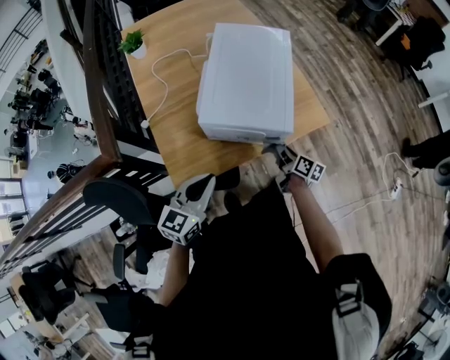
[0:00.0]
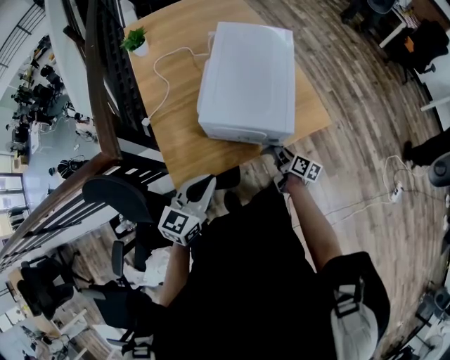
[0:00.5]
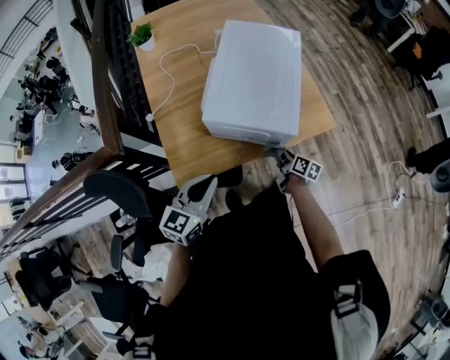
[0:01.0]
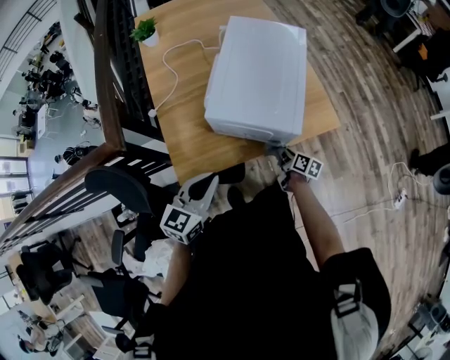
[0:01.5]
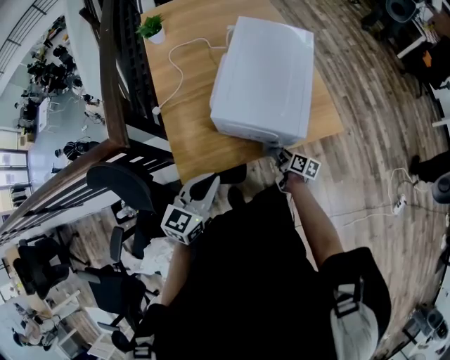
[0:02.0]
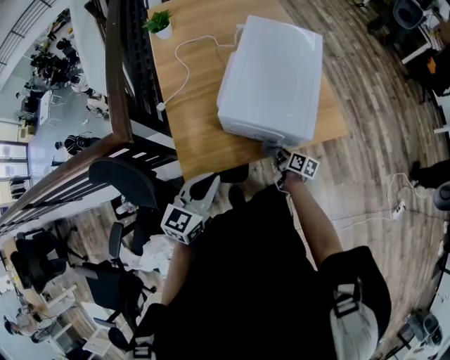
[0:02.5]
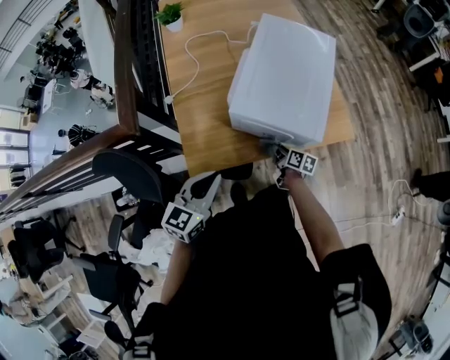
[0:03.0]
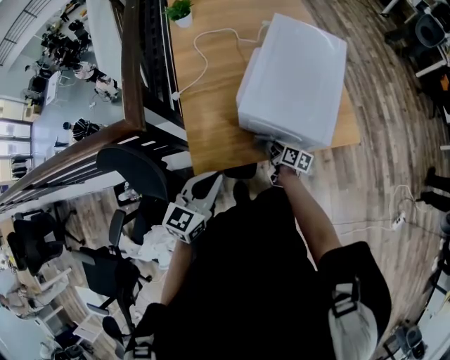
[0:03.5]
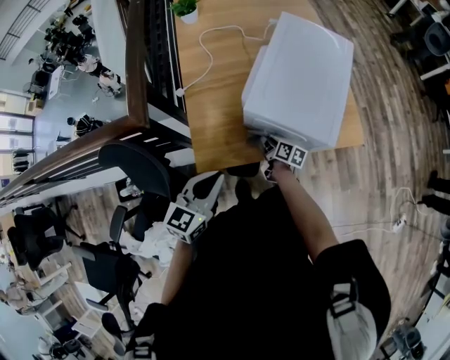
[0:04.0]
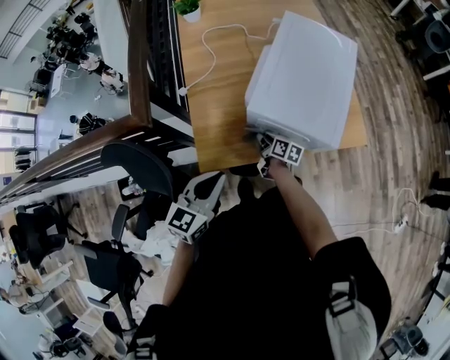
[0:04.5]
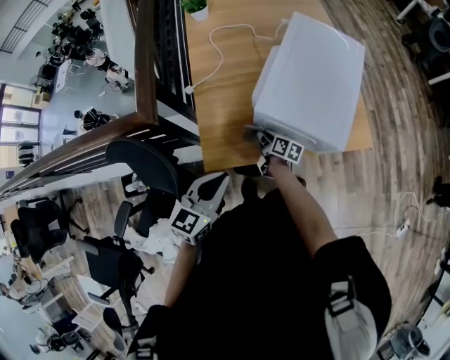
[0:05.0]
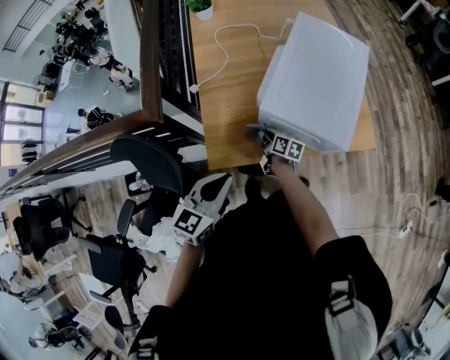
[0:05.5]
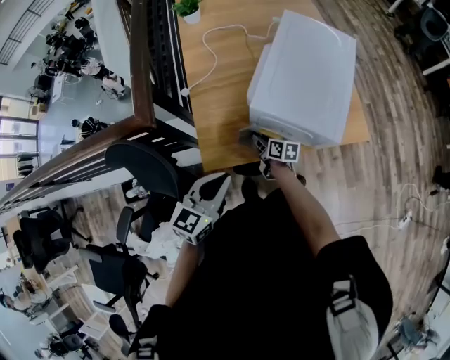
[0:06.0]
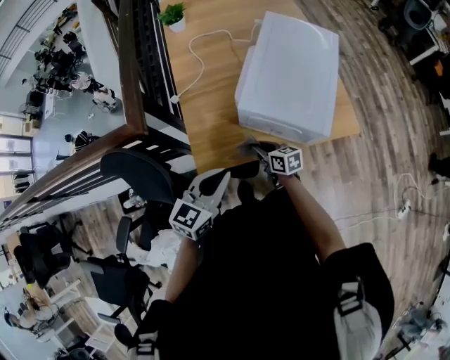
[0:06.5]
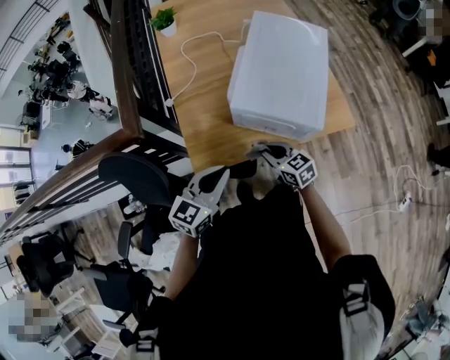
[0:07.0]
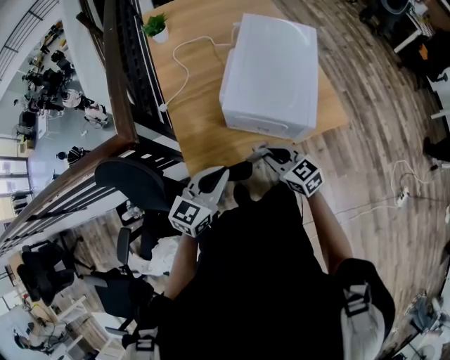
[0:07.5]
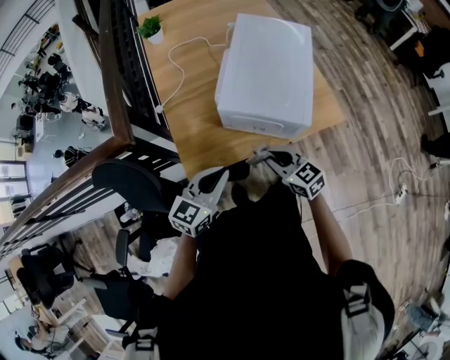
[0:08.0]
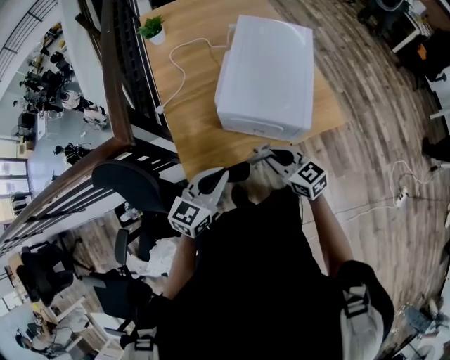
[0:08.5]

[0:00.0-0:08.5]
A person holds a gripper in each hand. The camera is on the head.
0:00.0 to 0:02.0: The right gripper is displaced downward by some 10 cm.
0:02.0 to 0:04.0: The right gripper is displaced to the left by approximately 15 cm; the left gripper shifts roughly 5 cm to the left.
0:04.0 to 0:06.5: The right gripper shifts by approximately 10 cm, and rotates roughly 30 degrees.
0:06.5 to 0:08.5: The right gripper heads upward and to the right, covering about 20 cm, and turns by some 30 degrees.

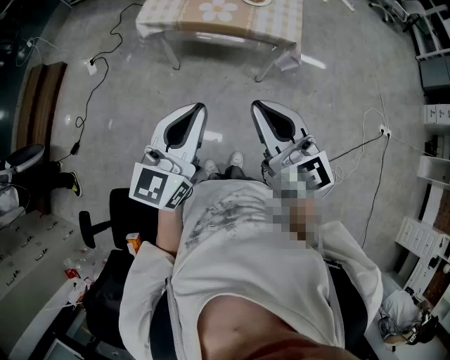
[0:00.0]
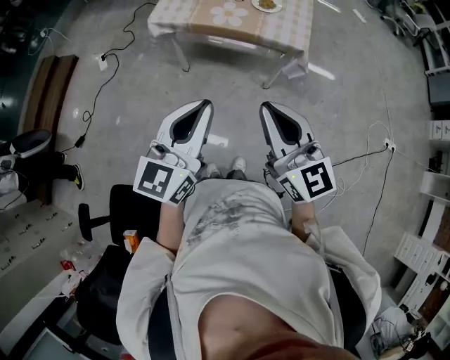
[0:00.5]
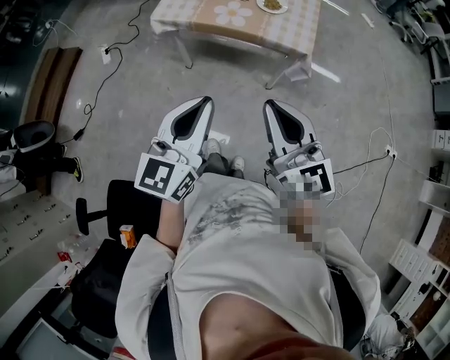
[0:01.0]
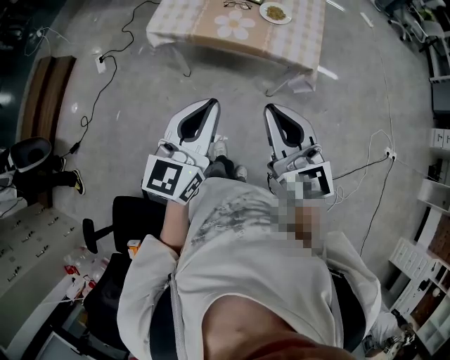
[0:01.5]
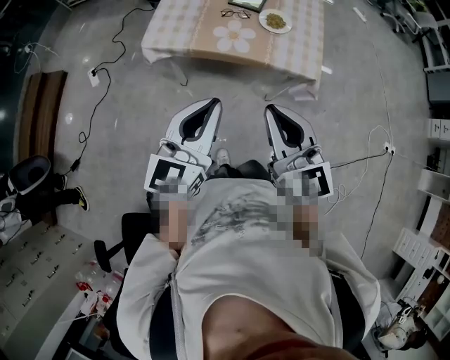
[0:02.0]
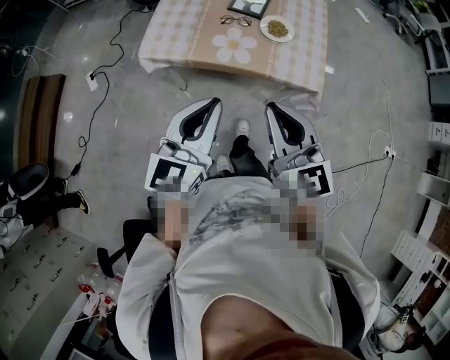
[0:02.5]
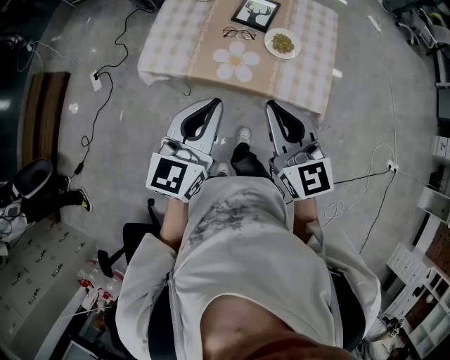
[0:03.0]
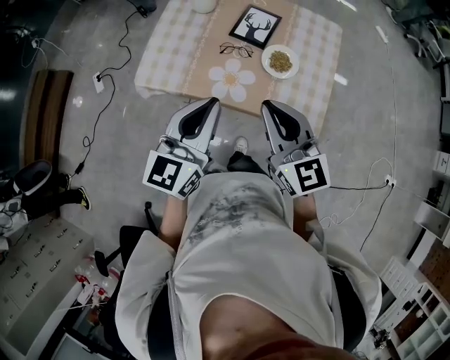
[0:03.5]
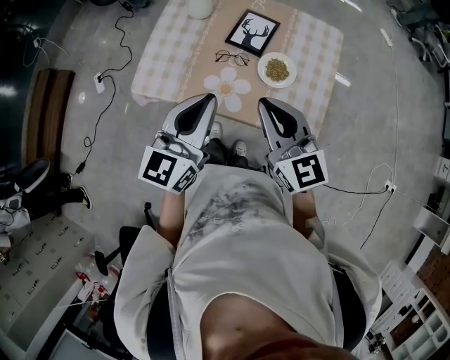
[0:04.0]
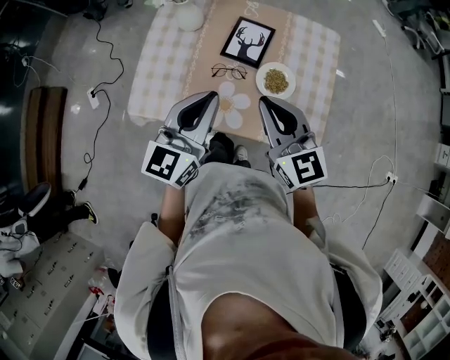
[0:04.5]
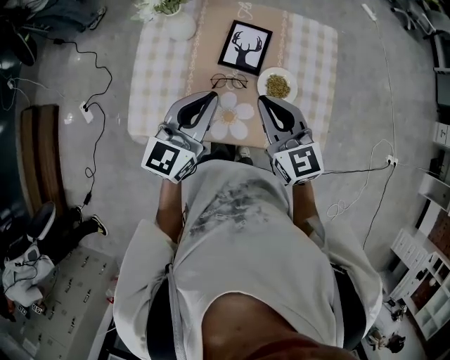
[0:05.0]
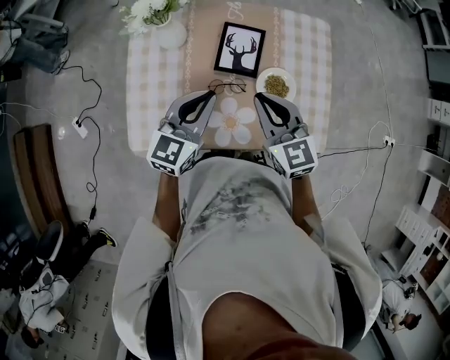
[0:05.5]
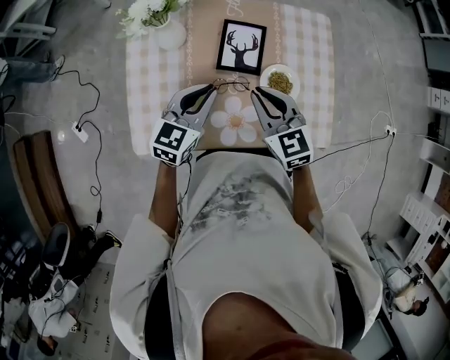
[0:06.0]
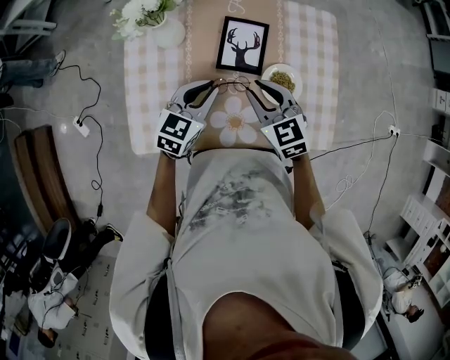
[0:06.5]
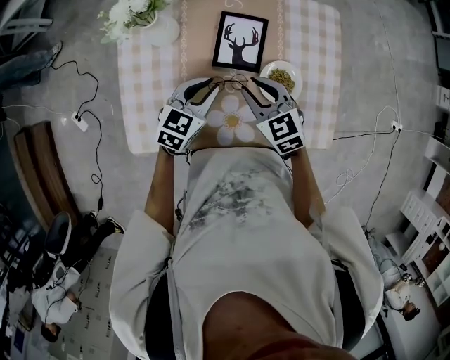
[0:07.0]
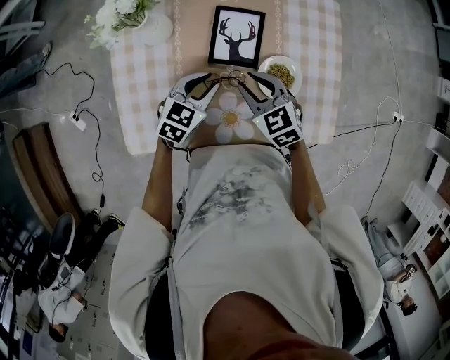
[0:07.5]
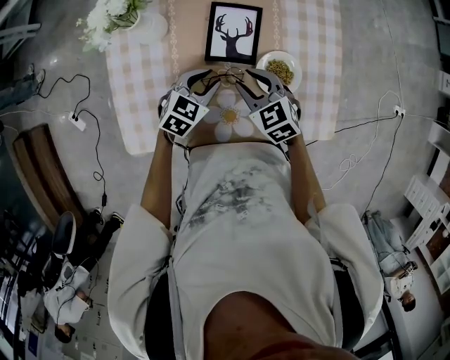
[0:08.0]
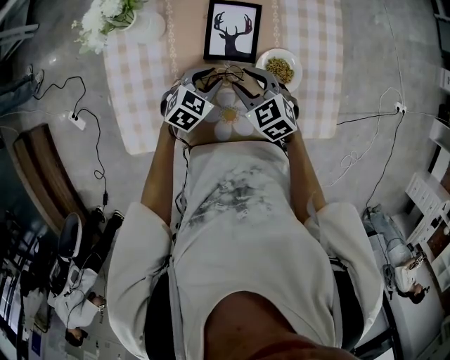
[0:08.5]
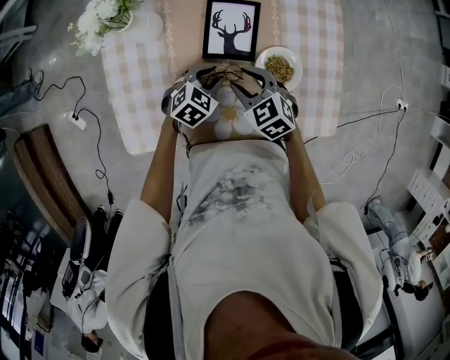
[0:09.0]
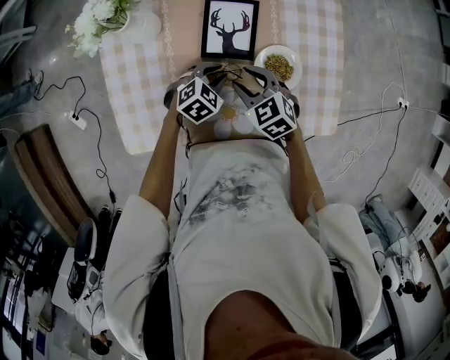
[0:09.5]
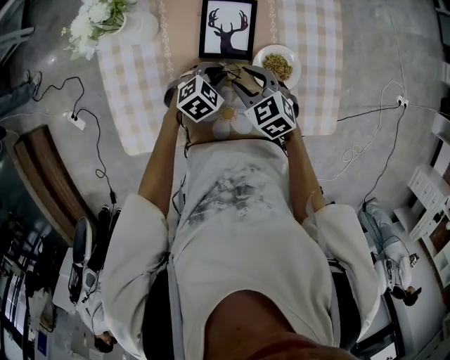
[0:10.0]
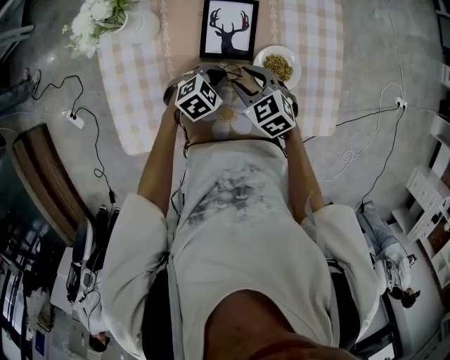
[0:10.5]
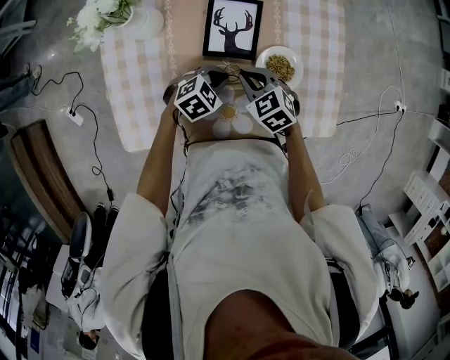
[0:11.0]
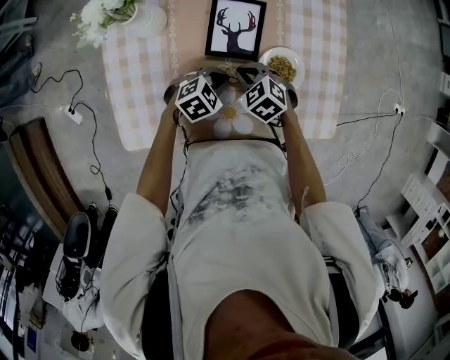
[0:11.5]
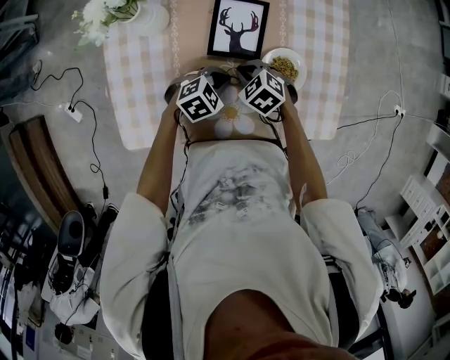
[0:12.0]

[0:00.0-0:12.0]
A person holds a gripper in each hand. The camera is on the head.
0:00.0 to 0:02.0: Both grippers move forward, roughly 20 cm.
0:02.0 to 0:04.0: Both grippers travel together forward, some 30 cm.
0:04.0 to 0:06.0: The left gripper heads forward and downward, covering about 25 cm, and turns by about 30 degrees. Meanwhile the right gripper moves forward, downward and to the left, about 25 cm, and swivels about 30 degrees.
0:06.0 to 0:08.0: Both grippers travel together downward, some 15 cm. The left gripper swivels about 30 degrees, and opens. Meanwhile the right gripper opens.
0:08.0 to 0:10.0: The left gripper goes approximately 5 cm downward, and turns by roughly 20 degrees.
0:10.0 to 0:12.0: The right gripper moves downward, approximately 5 cm, and closes its fingers.

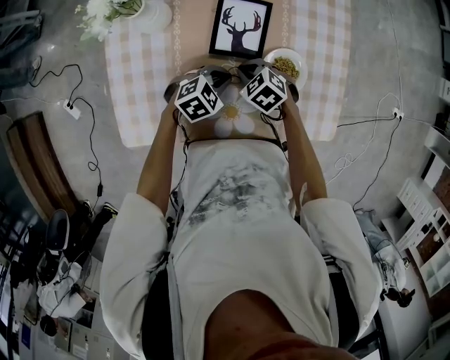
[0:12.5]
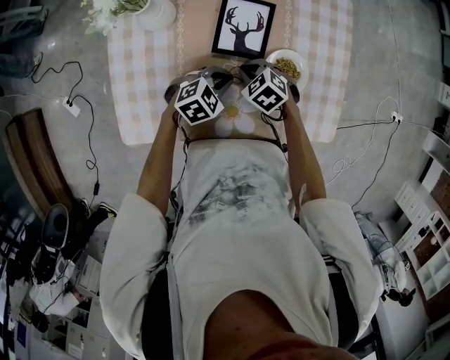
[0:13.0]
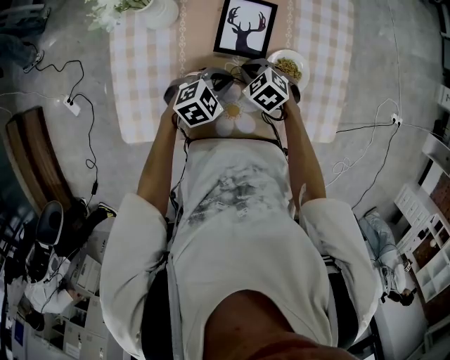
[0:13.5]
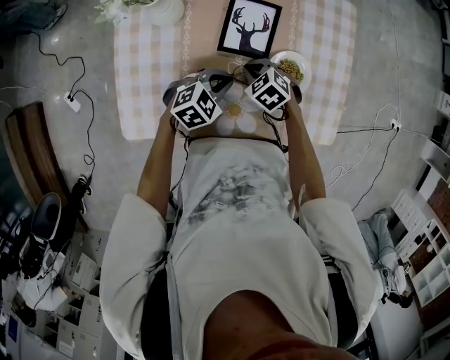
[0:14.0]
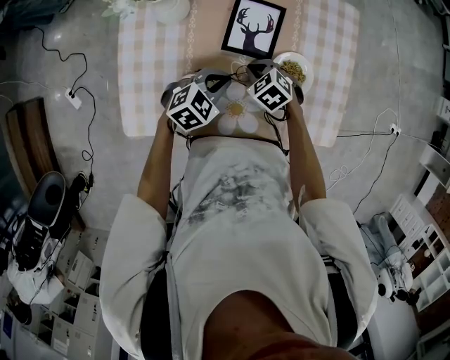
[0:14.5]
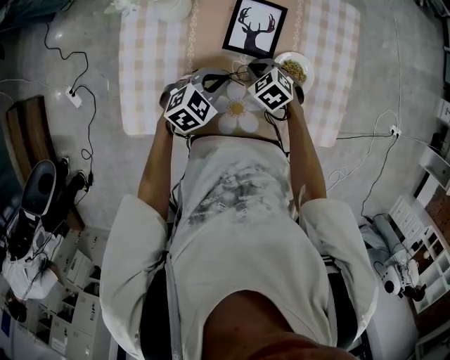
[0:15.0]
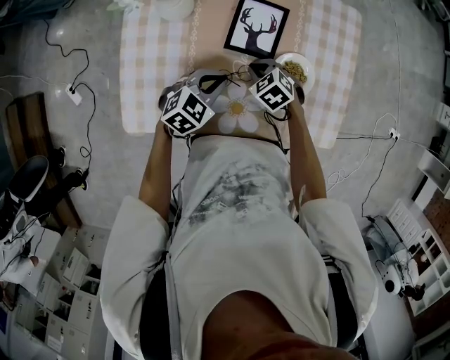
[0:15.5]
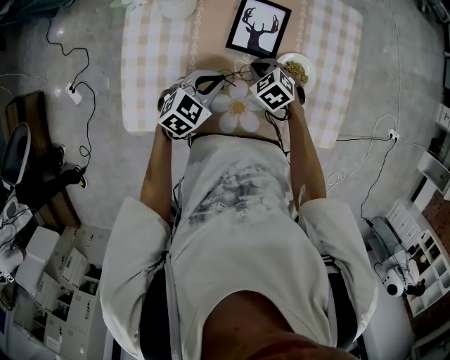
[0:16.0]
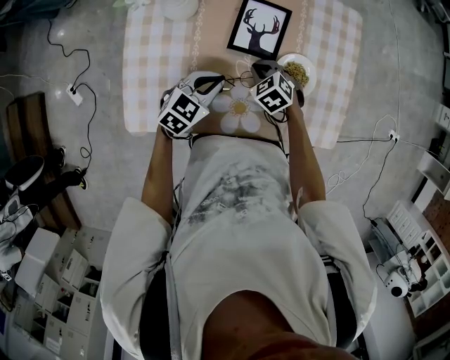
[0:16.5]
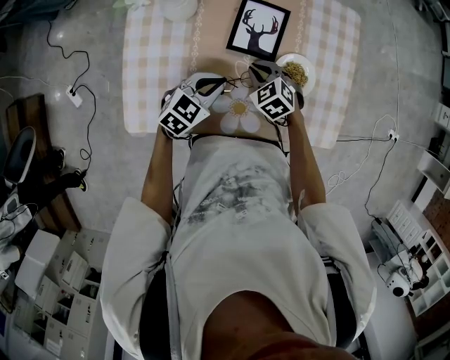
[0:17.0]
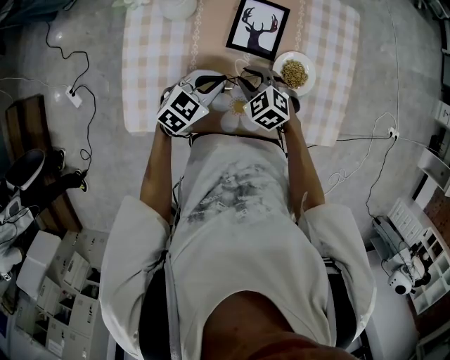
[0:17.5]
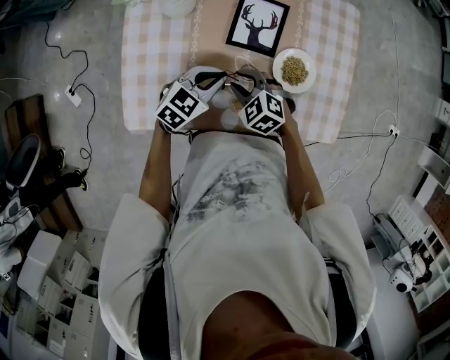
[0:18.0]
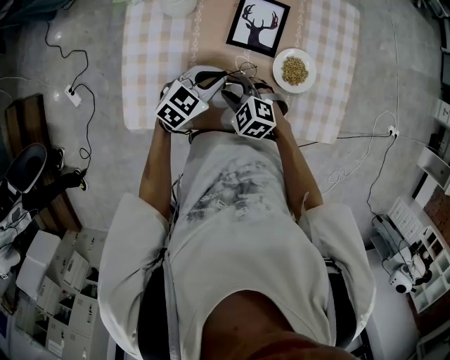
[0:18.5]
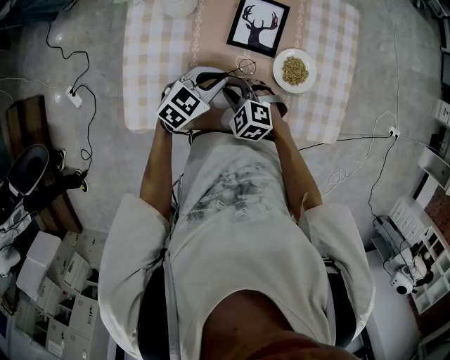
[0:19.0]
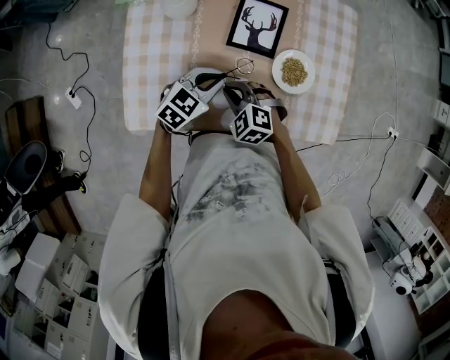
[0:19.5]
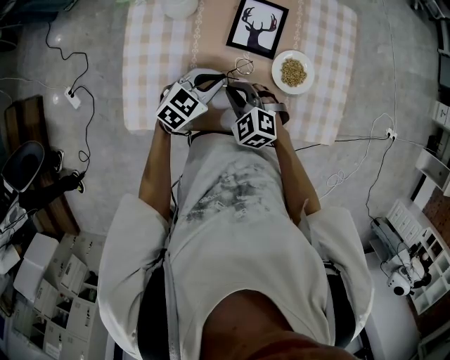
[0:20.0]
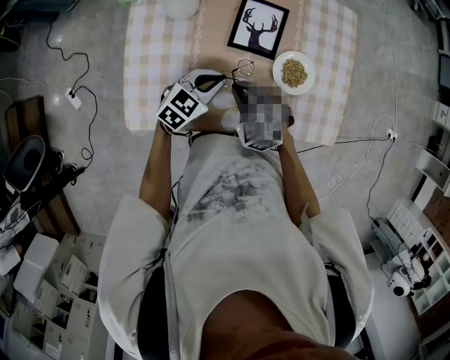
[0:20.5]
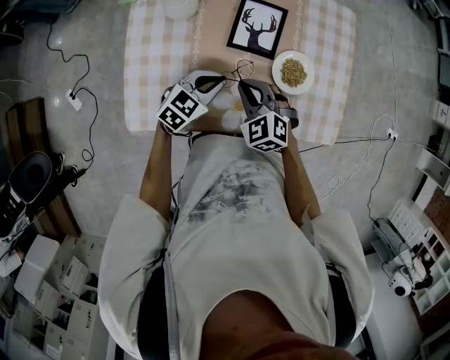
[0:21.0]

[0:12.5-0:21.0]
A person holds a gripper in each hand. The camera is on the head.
0:12.5 to 0:14.5: The left gripper shifts by roughly 5 cm.
0:14.5 to 0:16.5: The grippers make only small movements.
0:16.5 to 0:19.0: The right gripper travels backward and to the left by roughly 15 cm, and swivels roughly 20 degrees.
0:19.0 to 0:21.0: The right gripper heads upward, covering roughly 5 cm.
